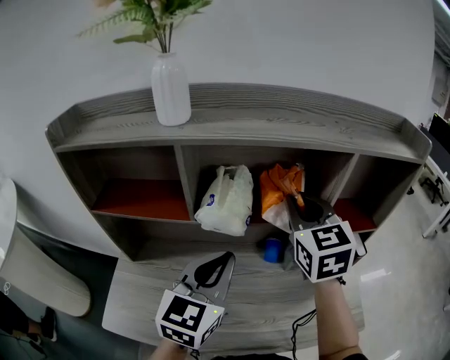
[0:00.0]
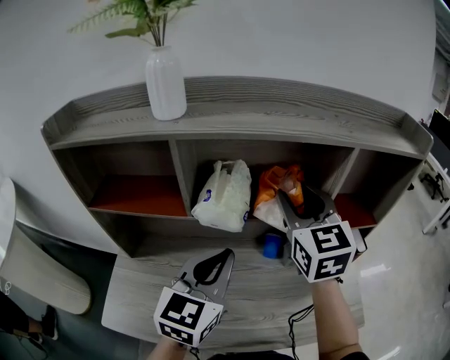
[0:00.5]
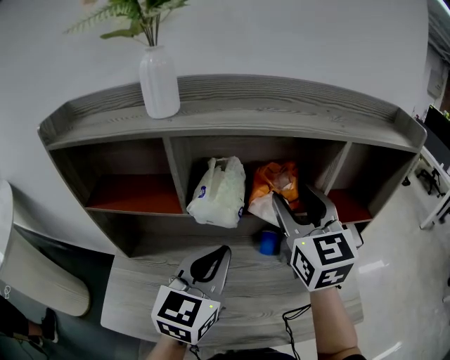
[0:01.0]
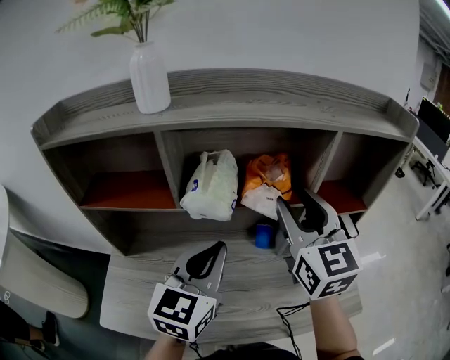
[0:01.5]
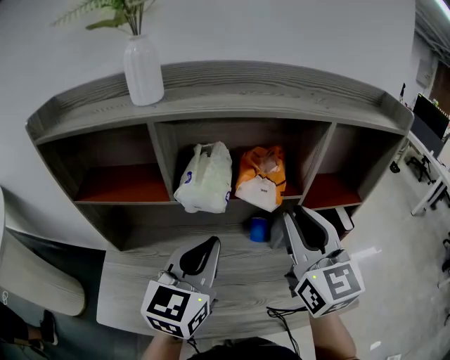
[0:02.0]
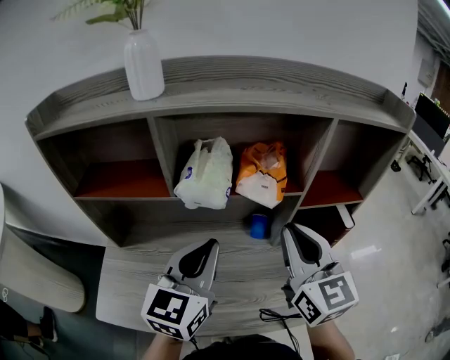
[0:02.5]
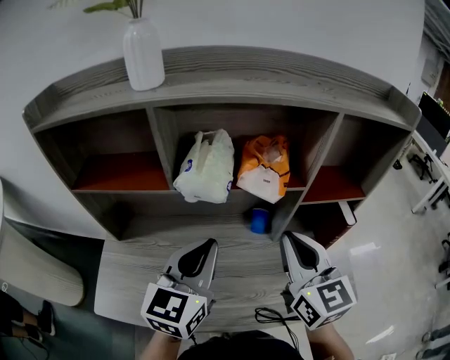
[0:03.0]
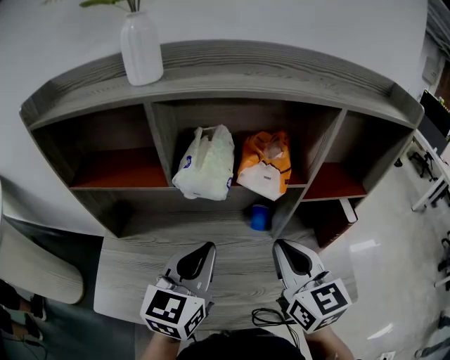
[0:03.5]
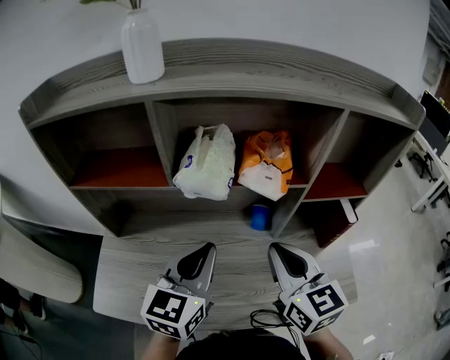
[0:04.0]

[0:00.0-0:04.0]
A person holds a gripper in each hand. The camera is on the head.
0:00.0 to 0:02.0: The right gripper is displaced backward by roughly 10 cm, and opens and closes again.
0:02.0 to 0:04.0: The right gripper moves downward, approximately 10 cm. The left gripper is displaced downward by approximately 5 cm.

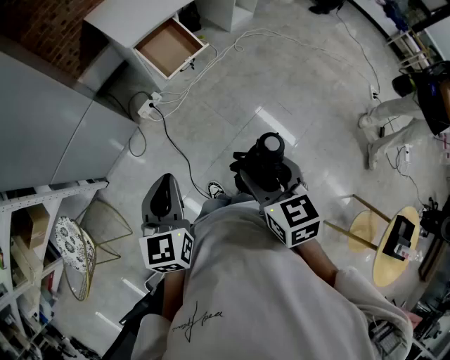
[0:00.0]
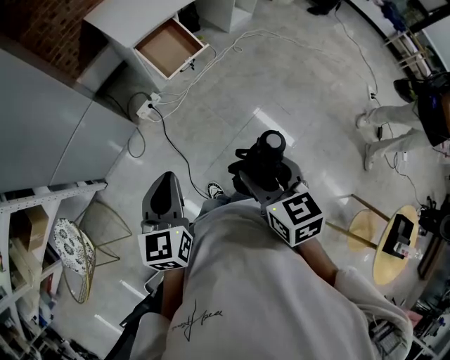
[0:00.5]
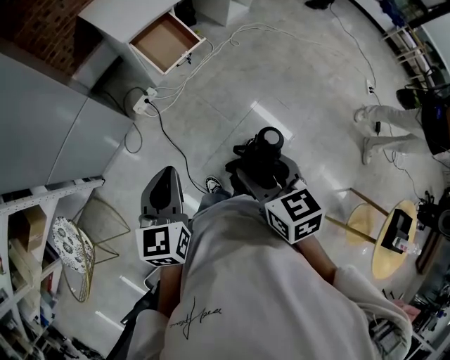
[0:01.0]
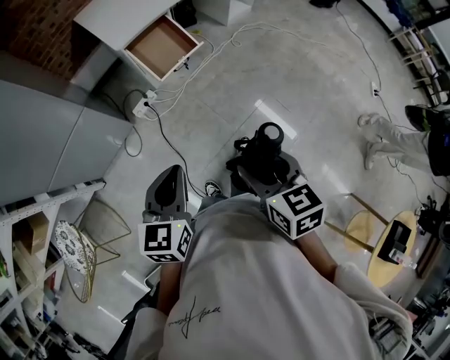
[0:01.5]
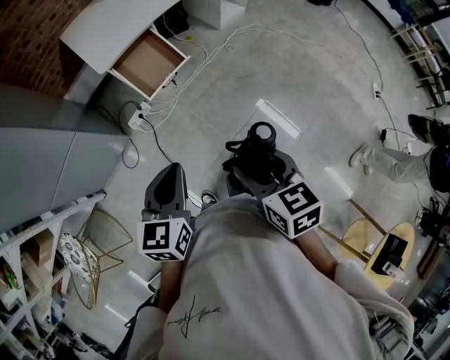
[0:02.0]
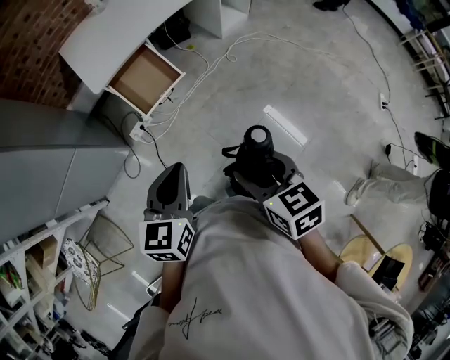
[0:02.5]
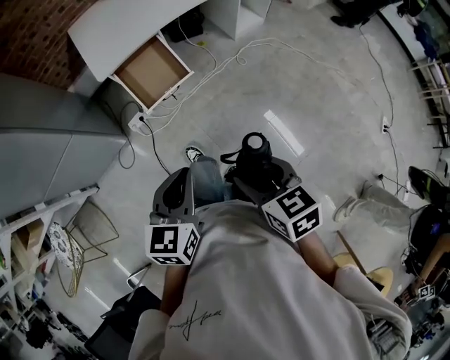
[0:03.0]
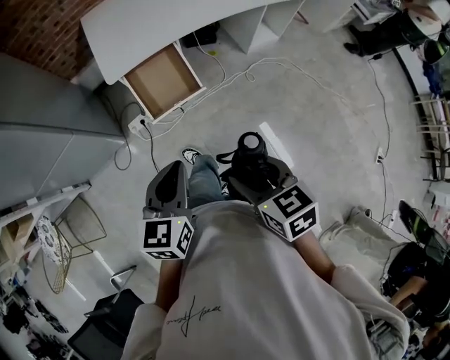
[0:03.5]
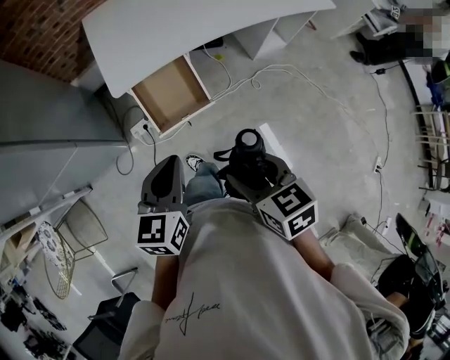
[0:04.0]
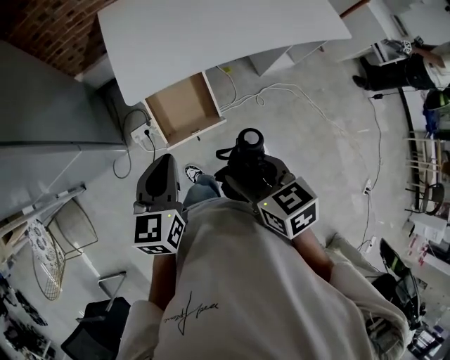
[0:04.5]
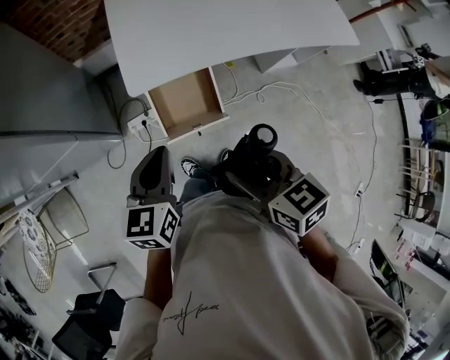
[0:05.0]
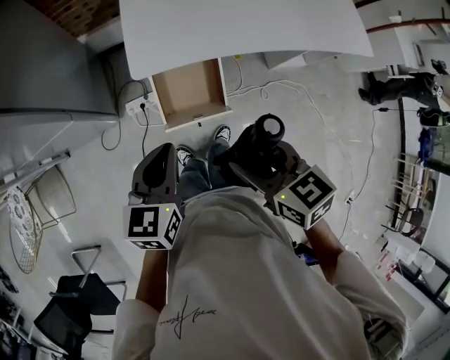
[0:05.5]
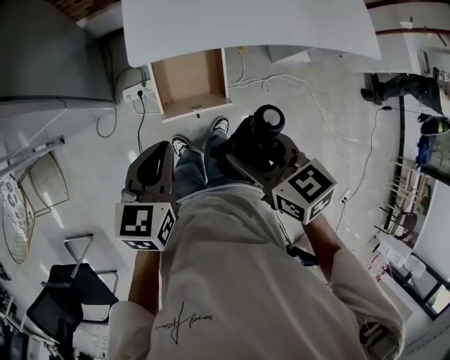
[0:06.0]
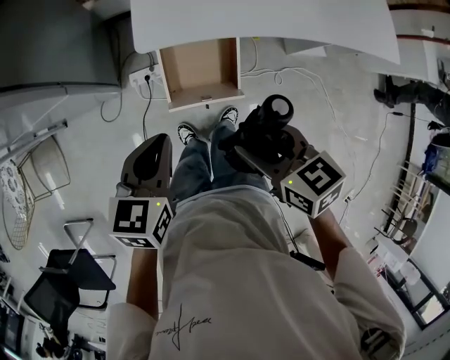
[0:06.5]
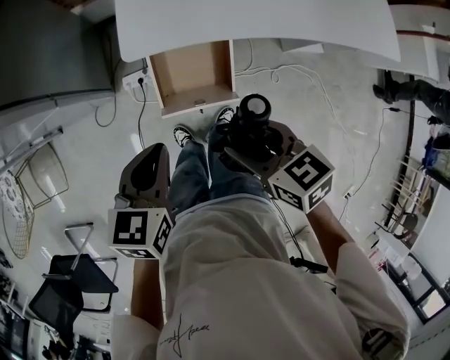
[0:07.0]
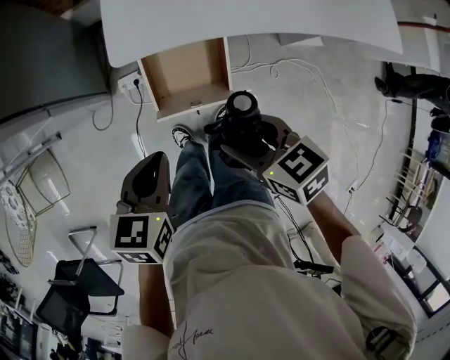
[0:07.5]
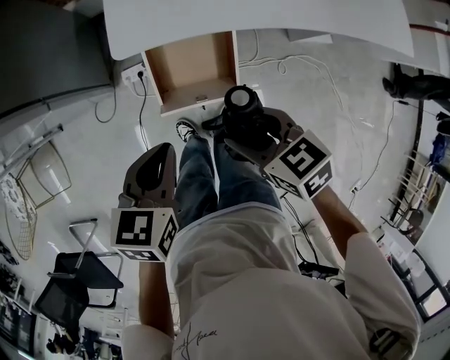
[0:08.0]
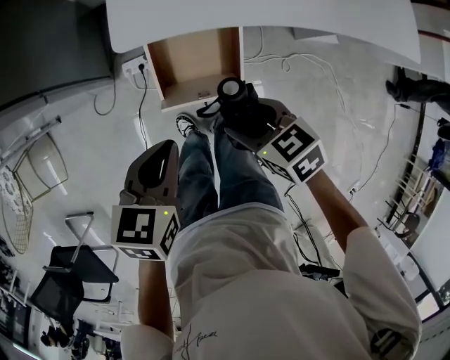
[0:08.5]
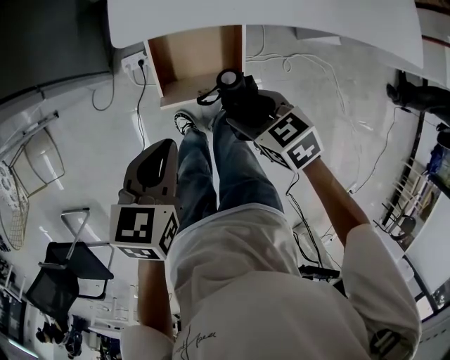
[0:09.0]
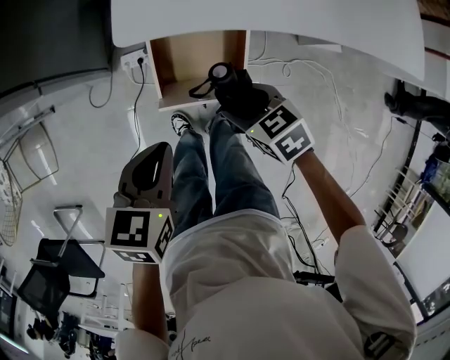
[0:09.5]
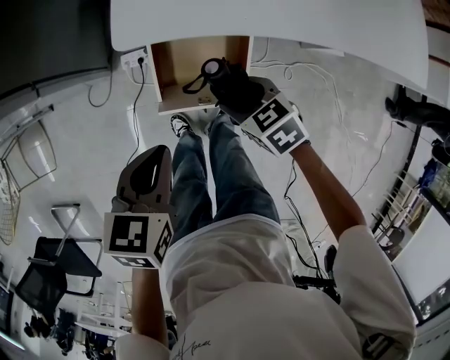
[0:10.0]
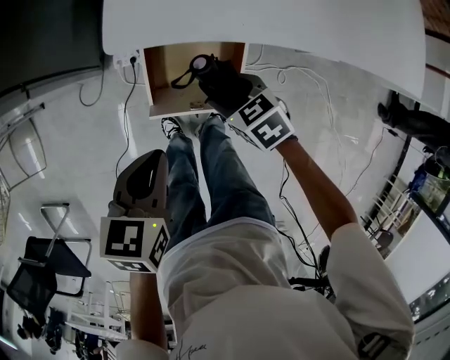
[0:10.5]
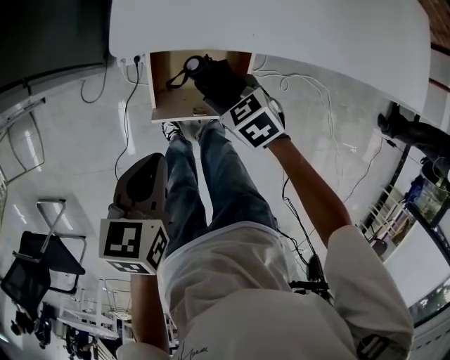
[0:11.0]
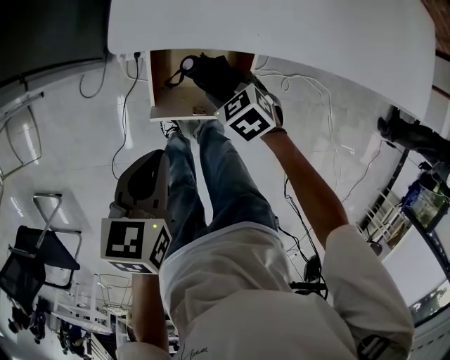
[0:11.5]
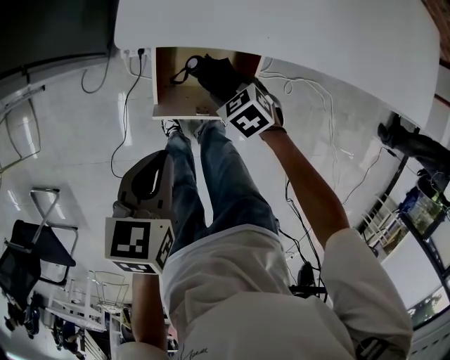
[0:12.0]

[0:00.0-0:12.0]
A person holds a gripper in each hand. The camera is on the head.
0:00.0 to 0:02.0: The left gripper shifts some 20 cm to the right and forward; the right gripper travels forward and to the right by about 15 cm.
0:02.0 to 0:04.0: The two grippers go roughly 25 cm forward. The right gripper turns by approximately 20 degrees.
0:04.0 to 0:06.0: The left gripper goes roughly 10 cm forward and to the left. Meanwhile the right gripper moves forward, about 15 cm.
0:06.0 to 0:08.0: The left gripper shifts some 10 cm downward; the right gripper heads downward, covering roughly 15 cm.
0:08.0 to 0:10.0: The right gripper goes roughly 15 cm downward and forward.
0:10.0 to 0:12.0: The right gripper goes some 10 cm downward and forward.

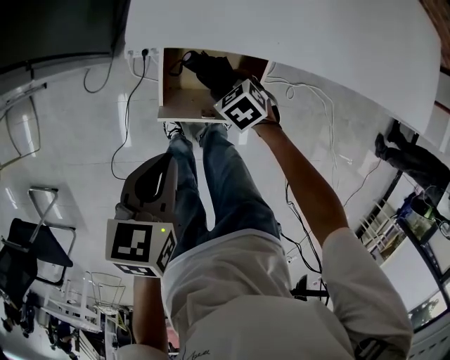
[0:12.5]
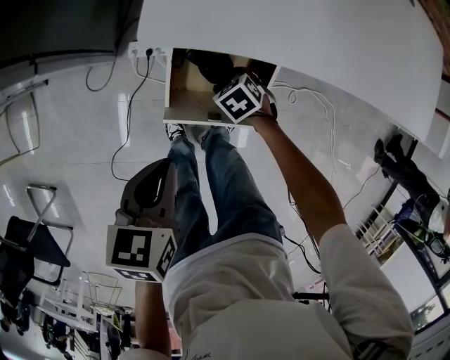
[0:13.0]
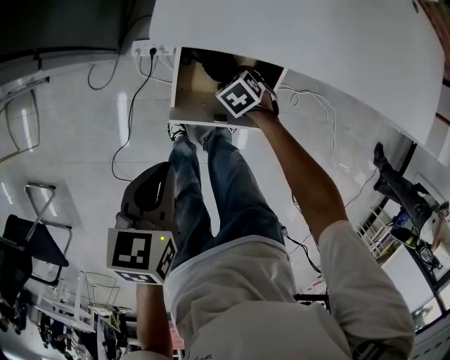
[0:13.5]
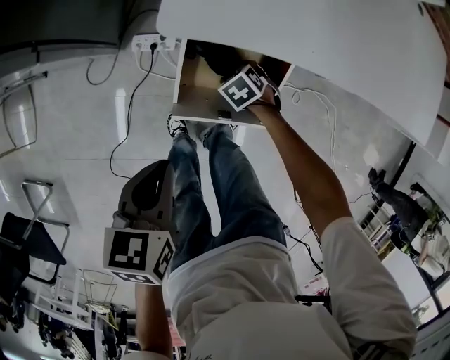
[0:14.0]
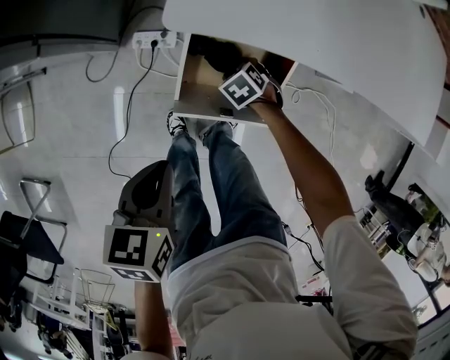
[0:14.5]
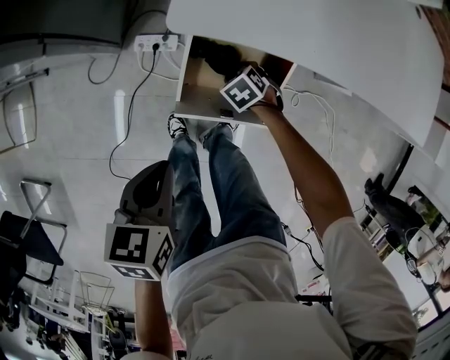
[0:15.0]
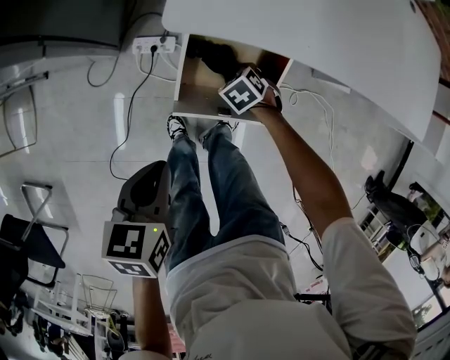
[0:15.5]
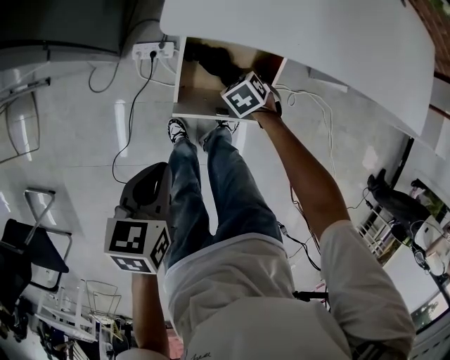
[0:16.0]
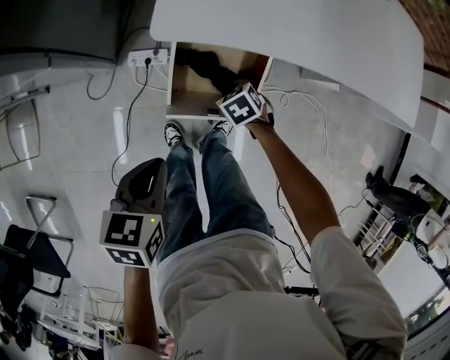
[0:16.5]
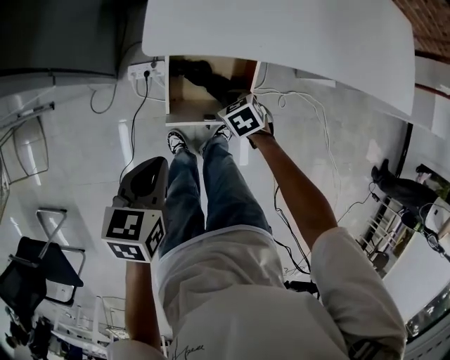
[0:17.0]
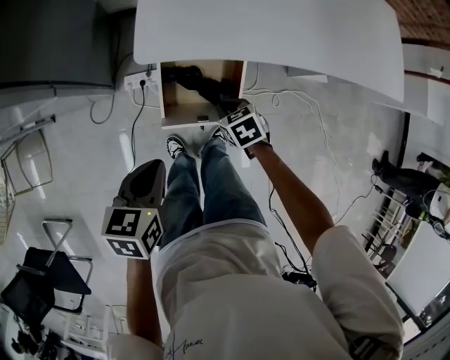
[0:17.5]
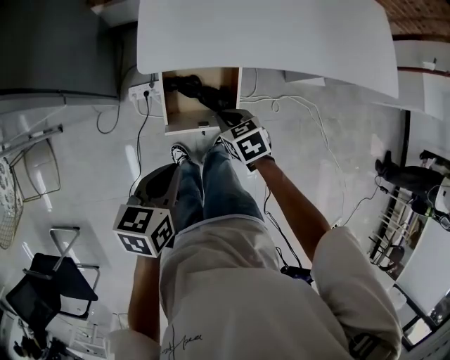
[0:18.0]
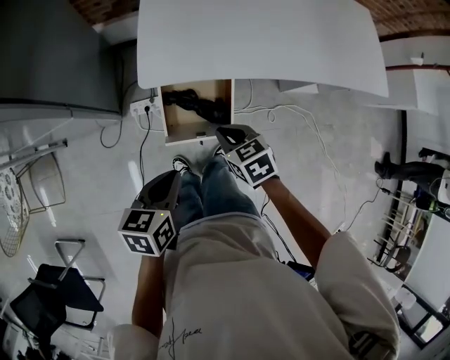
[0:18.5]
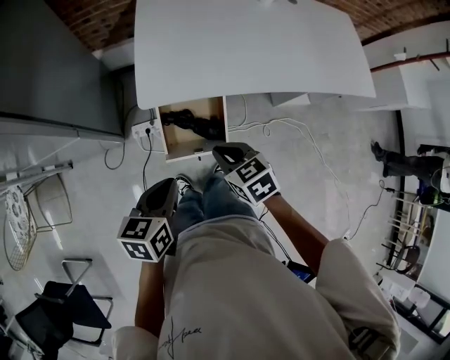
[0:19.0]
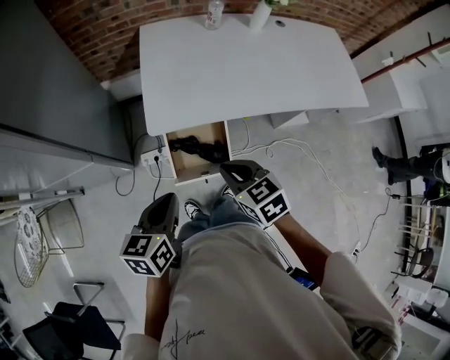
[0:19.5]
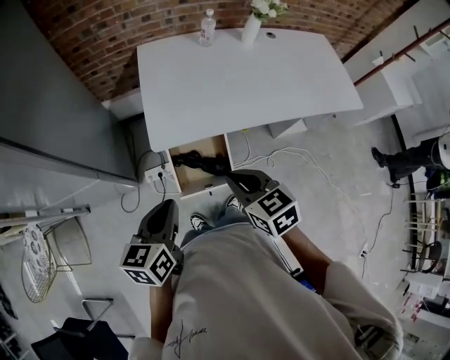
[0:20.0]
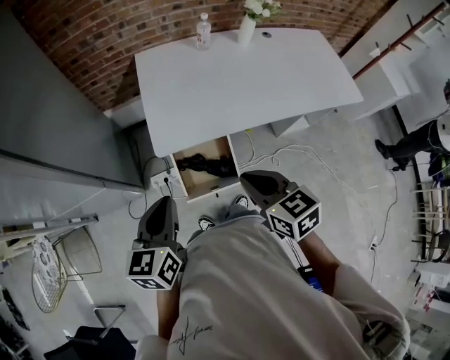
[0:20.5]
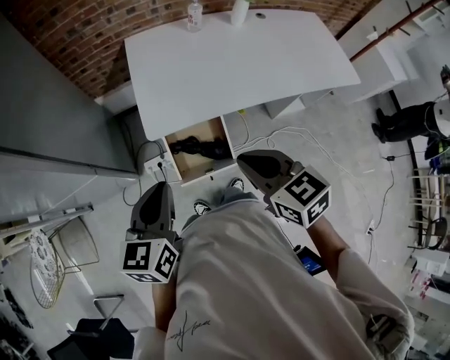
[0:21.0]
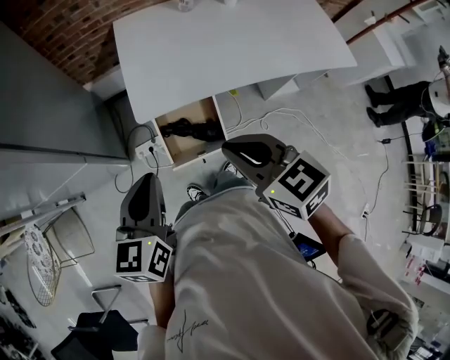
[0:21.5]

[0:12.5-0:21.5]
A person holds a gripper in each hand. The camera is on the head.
0:12.5 to 0:14.5: The right gripper travels downward by roughly 10 cm. The left gripper shifts by approximately 10 cm.
0:14.5 to 0:17.0: The right gripper moves upward, roughly 10 cm, and closes its fingers; the left gripper shifts approximately 5 cm upward.
0:17.0 to 0:19.5: The right gripper shifts roughly 35 cm upward, and swivels approximately 30 degrees; the left gripper goes some 15 cm upward.
0:19.5 to 0:21.5: The grippers both shift upward by some 10 cm.

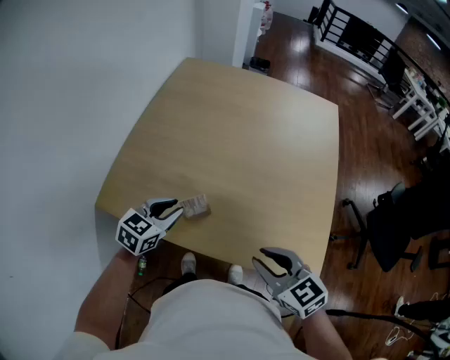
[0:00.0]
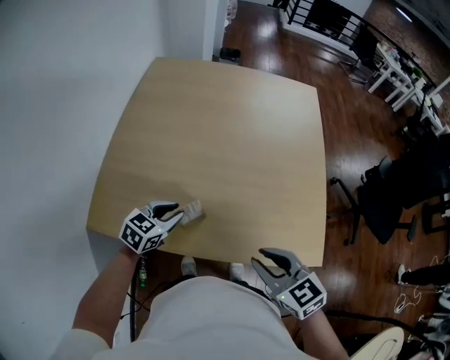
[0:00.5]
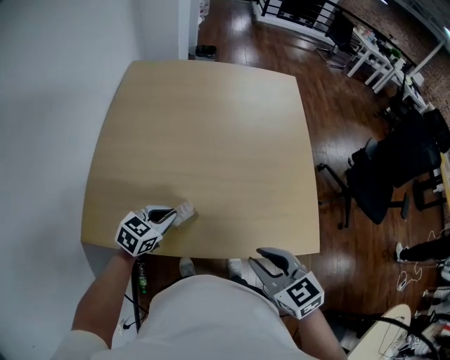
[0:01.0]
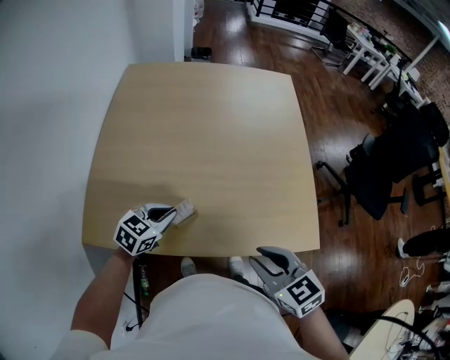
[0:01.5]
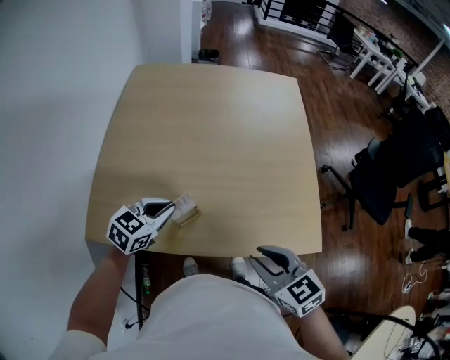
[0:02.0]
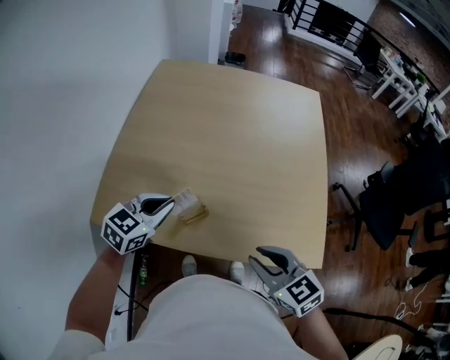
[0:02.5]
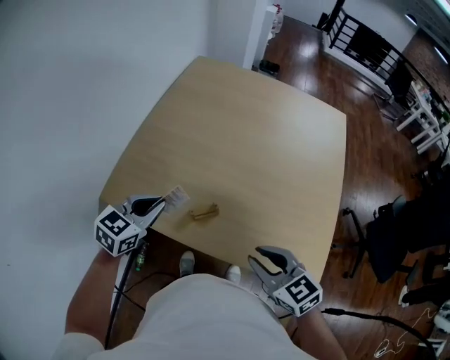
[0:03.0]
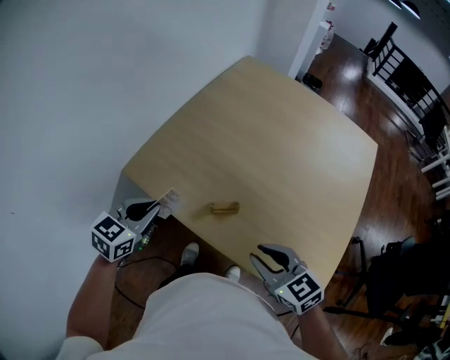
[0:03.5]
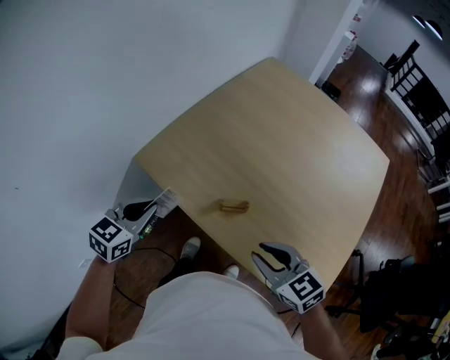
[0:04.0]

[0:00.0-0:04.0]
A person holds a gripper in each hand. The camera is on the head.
0:00.0 to 0:02.0: The left gripper closes.
0:02.0 to 0:04.0: The right gripper shifts by roughly 5 cm, and swivels some 40 degrees. The left gripper ends up about 20 cm from where it was, and swivels some 50 degrees.
